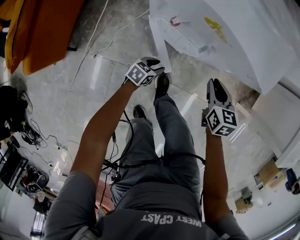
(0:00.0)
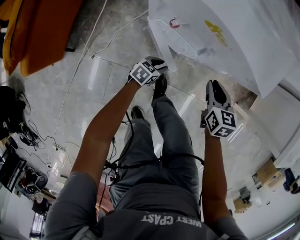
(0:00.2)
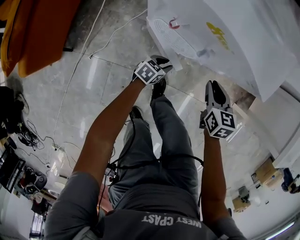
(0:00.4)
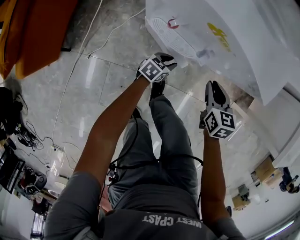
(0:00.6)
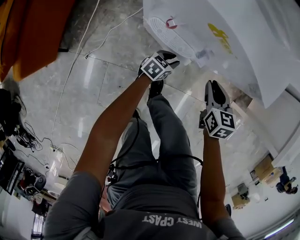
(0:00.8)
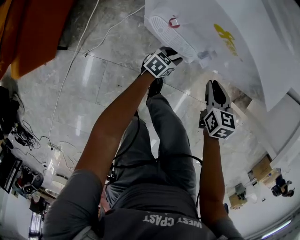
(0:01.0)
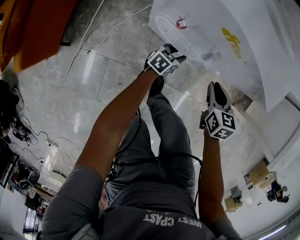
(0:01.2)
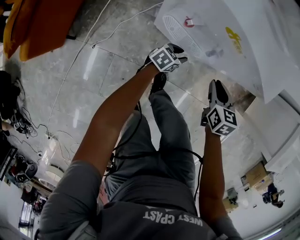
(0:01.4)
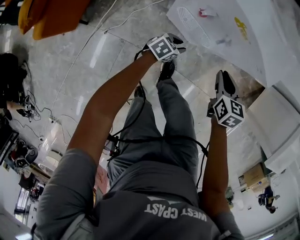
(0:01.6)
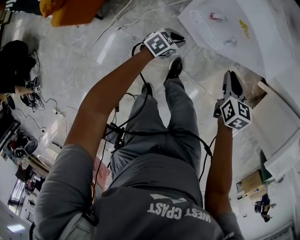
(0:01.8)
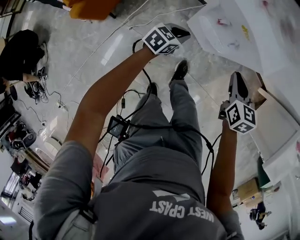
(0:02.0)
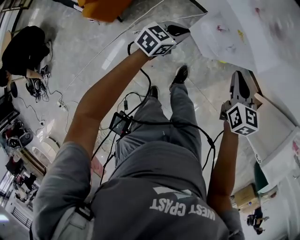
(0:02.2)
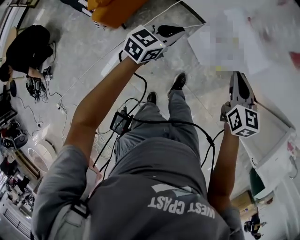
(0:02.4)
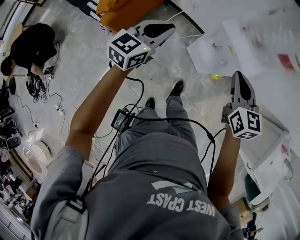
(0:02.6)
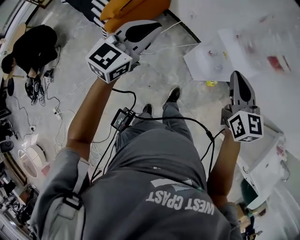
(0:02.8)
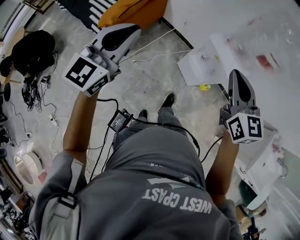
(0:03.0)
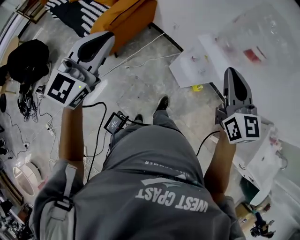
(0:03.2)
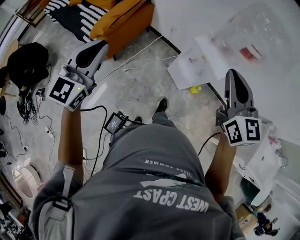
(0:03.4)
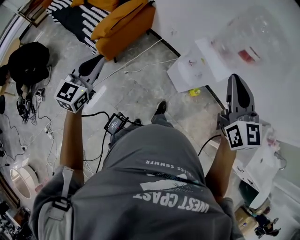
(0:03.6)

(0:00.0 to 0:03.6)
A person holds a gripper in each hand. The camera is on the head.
0:00.0 - 0:01.8: The right gripper moves upward, approximately 10 cm, while the left gripper shifts roughly 15 cm upward and to the left, and closes its fingers.
0:01.8 - 0:03.6: Both grippers move upward, approximately 50 cm. The left gripper swivels approximately 60 degrees. Meanwhile the right gripper points its fingers roughly 40 degrees further upward.

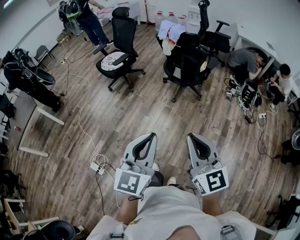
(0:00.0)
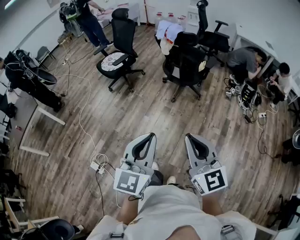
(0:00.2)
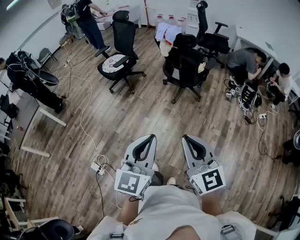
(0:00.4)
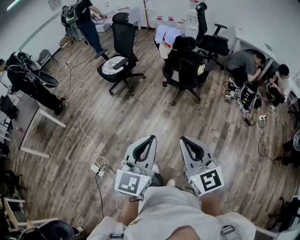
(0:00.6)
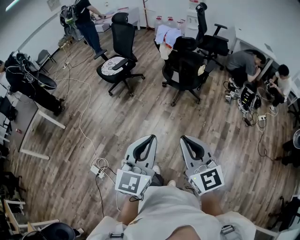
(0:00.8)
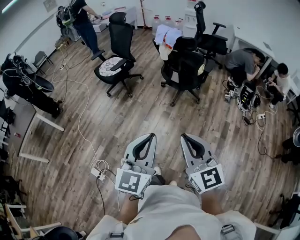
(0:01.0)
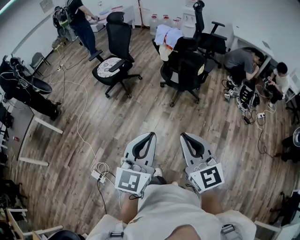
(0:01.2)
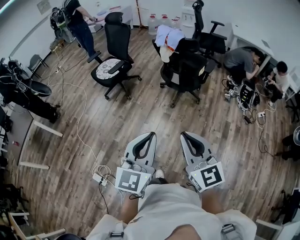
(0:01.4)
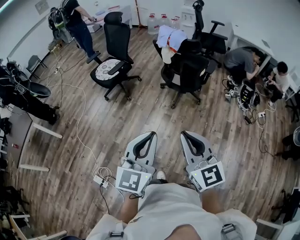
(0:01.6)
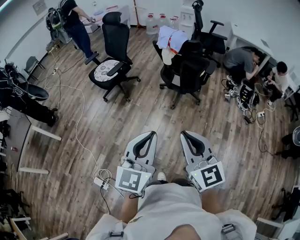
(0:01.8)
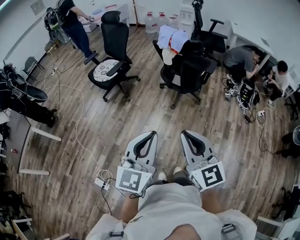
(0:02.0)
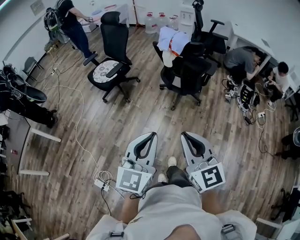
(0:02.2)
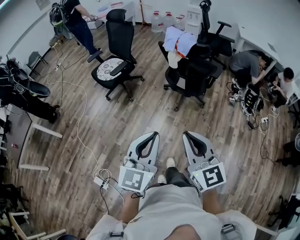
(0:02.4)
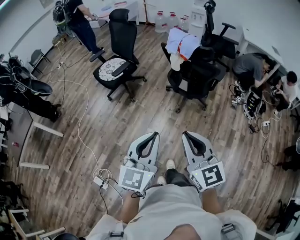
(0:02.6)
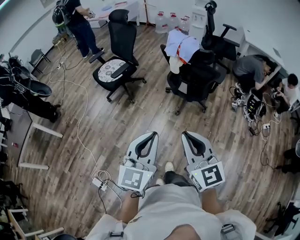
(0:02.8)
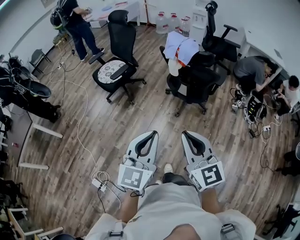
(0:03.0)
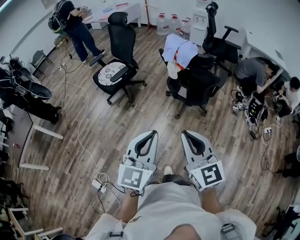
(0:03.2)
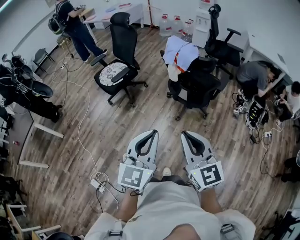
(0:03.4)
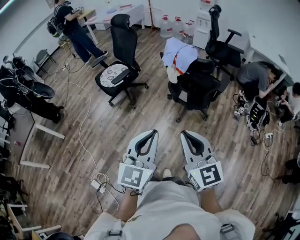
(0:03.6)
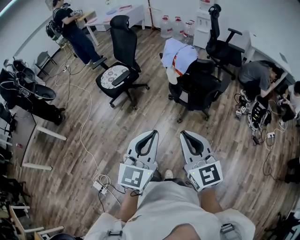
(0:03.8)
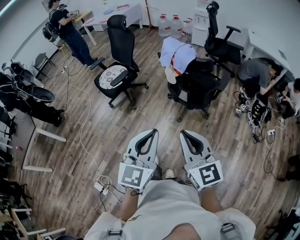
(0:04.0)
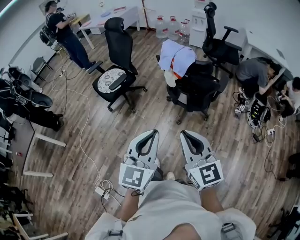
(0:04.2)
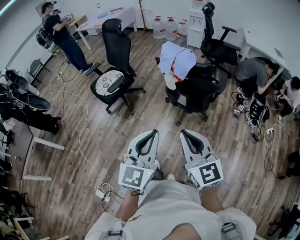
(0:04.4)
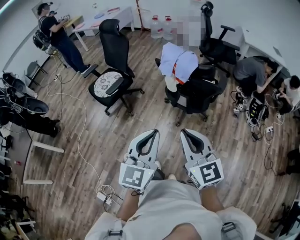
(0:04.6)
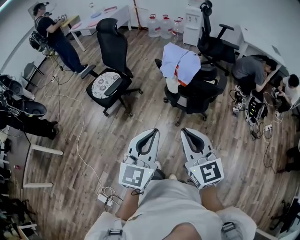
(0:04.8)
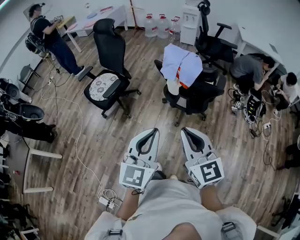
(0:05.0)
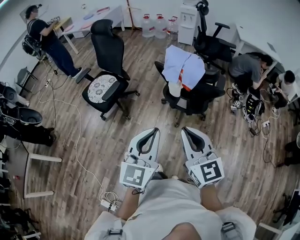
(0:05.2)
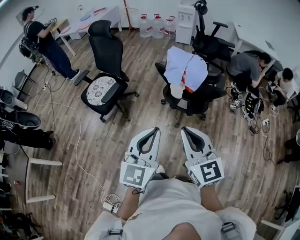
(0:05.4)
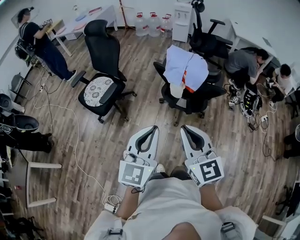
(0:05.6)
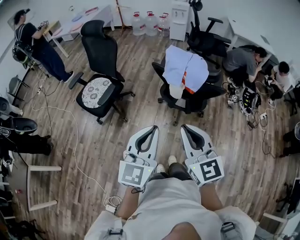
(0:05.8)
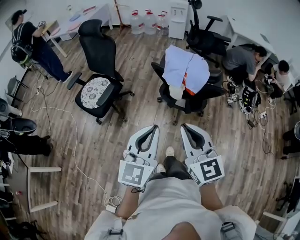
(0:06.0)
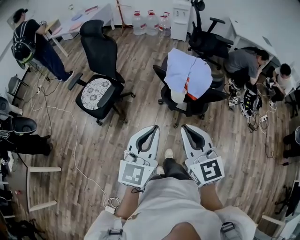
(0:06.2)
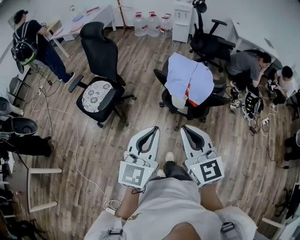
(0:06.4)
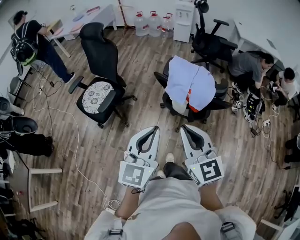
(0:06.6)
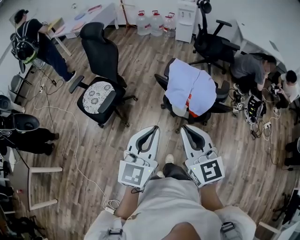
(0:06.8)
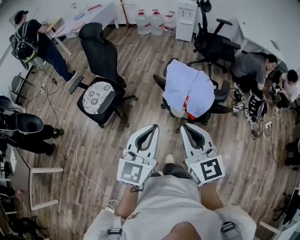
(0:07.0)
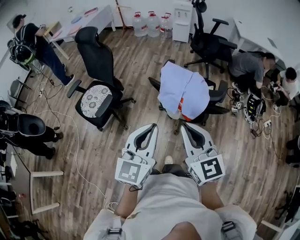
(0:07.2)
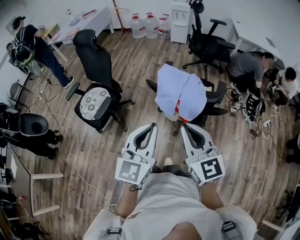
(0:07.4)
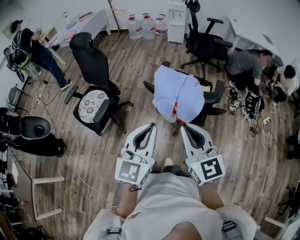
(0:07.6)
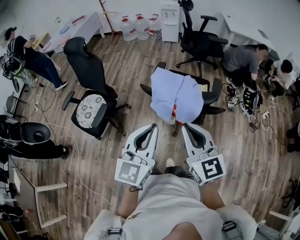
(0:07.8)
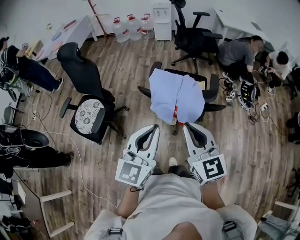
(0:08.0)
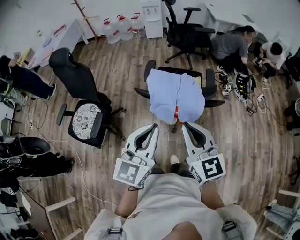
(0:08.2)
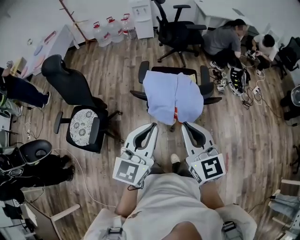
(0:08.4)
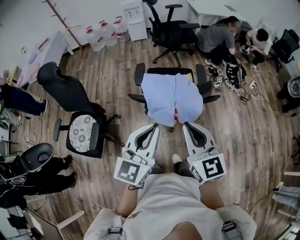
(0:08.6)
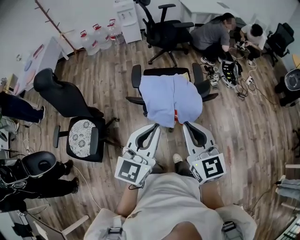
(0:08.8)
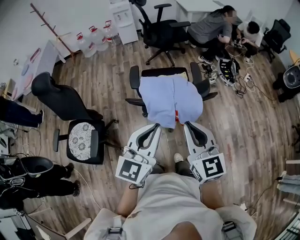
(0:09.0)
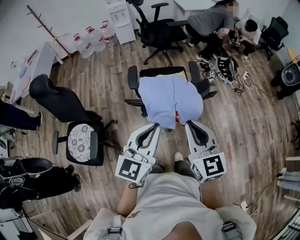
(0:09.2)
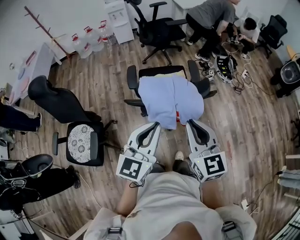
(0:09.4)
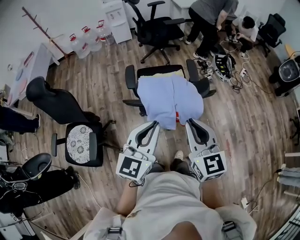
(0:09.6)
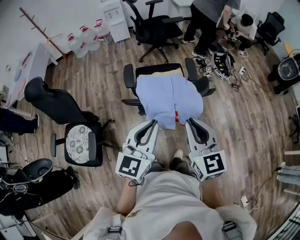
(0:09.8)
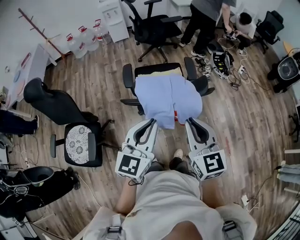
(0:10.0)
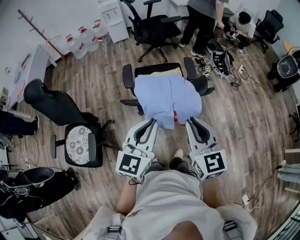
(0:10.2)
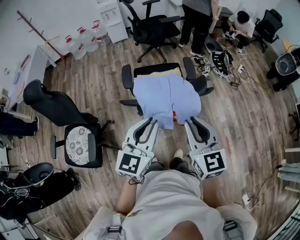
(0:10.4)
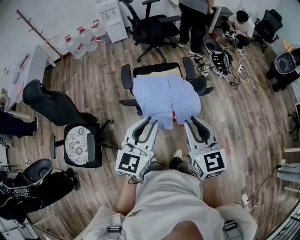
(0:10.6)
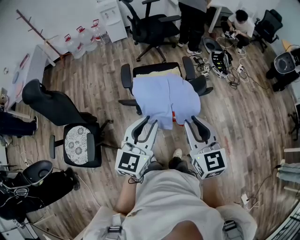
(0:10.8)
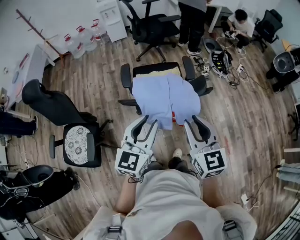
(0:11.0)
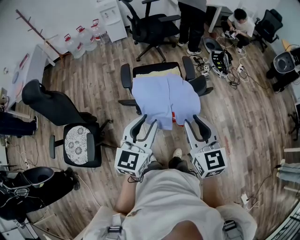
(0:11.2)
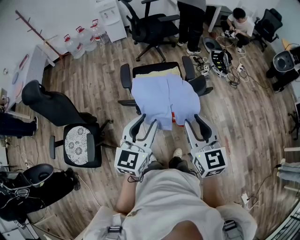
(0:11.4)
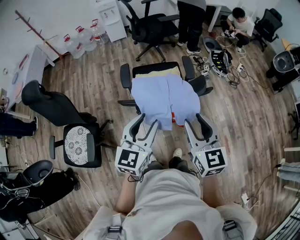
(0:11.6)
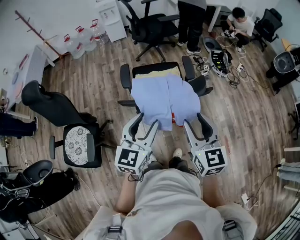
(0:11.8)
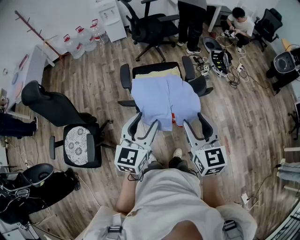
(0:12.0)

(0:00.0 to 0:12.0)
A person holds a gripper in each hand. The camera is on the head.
0:00.0 - 0:01.6: The left gripper heads forward, covering about 10 cm. Meanwhile the right gripper goes about 10 cm forward and to the left.
0:01.6 - 0:03.0: Both grippers travel together forward, about 15 cm.
0:03.0 - 0:04.4: The two grippers go about 10 cm forward.
0:04.4 - 0:06.0: Both grippers move forward and to the left, some 15 cm.
0:06.0 - 0:07.6: The right gripper travels forward and to the right by roughly 15 cm. Meanwhile the left gripper heads forward, covering about 15 cm.
0:07.6 - 0:09.0: The left gripper ends up roughly 10 cm from where it was, and swivels about 30 degrees; the right gripper changes its angle by about 30 degrees.
0:09.0 - 0:10.4: The grippers move only a little.
0:10.4 - 0:12.0: The right gripper opens its fingers, while the left gripper opens up.

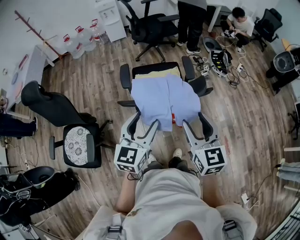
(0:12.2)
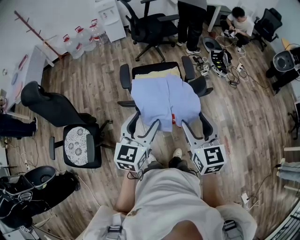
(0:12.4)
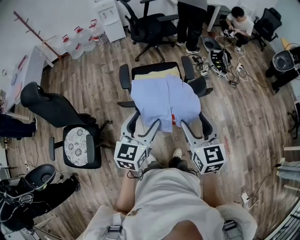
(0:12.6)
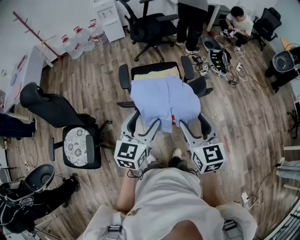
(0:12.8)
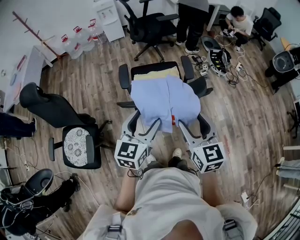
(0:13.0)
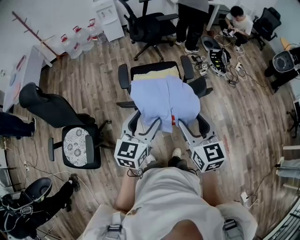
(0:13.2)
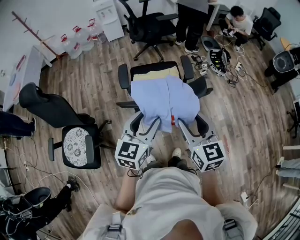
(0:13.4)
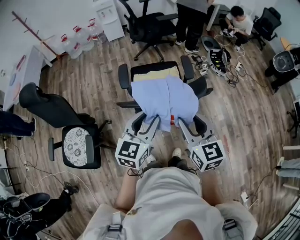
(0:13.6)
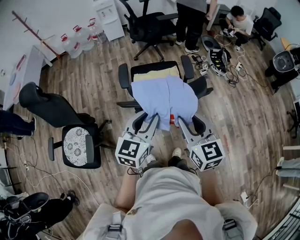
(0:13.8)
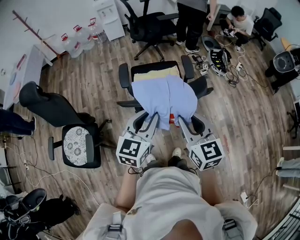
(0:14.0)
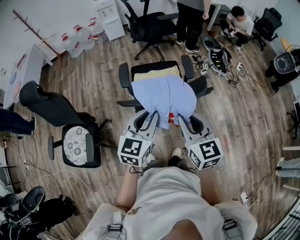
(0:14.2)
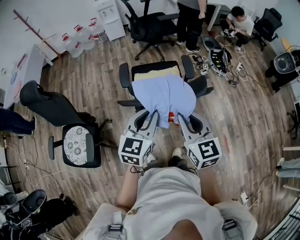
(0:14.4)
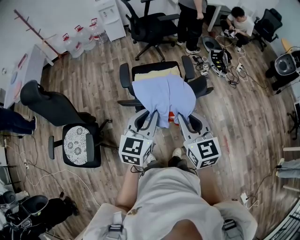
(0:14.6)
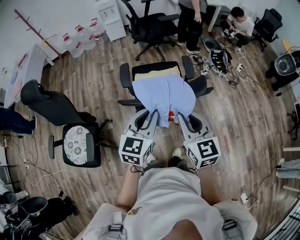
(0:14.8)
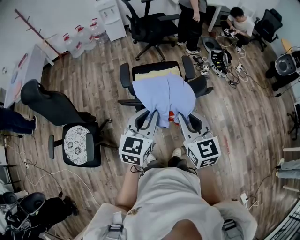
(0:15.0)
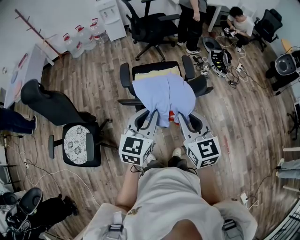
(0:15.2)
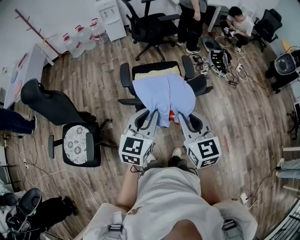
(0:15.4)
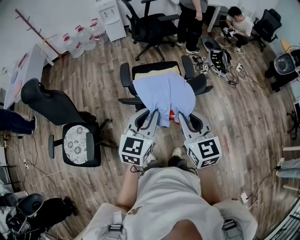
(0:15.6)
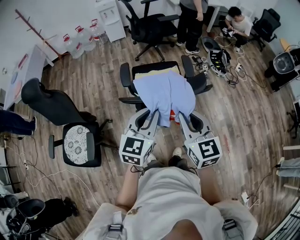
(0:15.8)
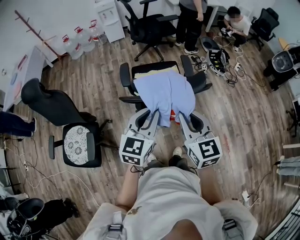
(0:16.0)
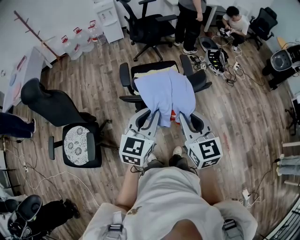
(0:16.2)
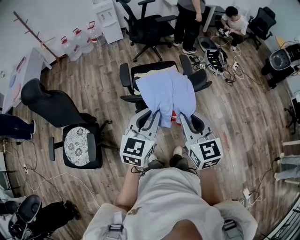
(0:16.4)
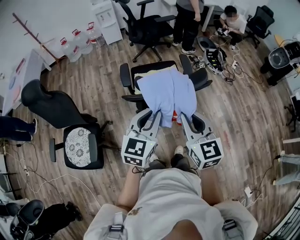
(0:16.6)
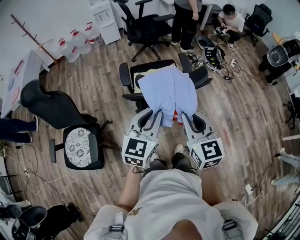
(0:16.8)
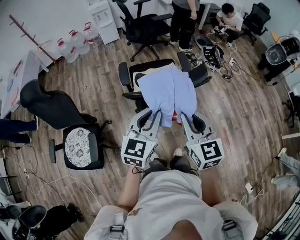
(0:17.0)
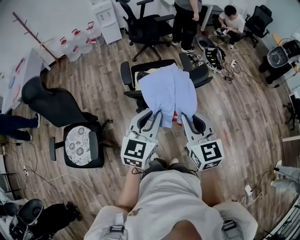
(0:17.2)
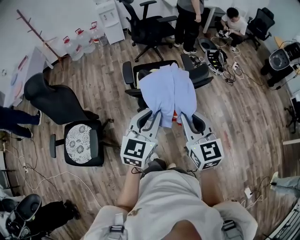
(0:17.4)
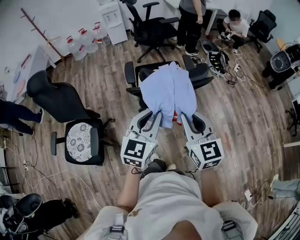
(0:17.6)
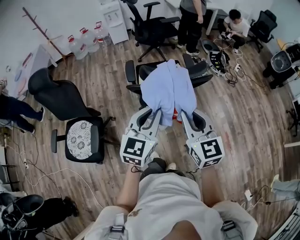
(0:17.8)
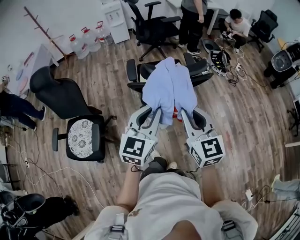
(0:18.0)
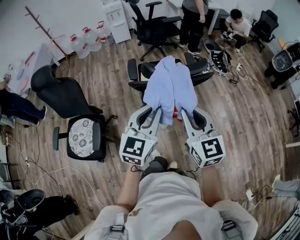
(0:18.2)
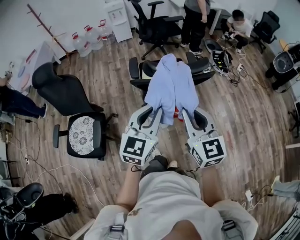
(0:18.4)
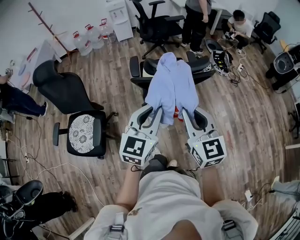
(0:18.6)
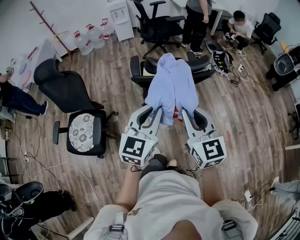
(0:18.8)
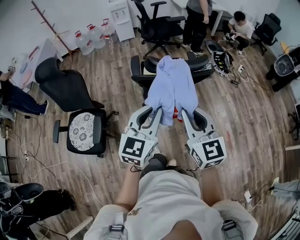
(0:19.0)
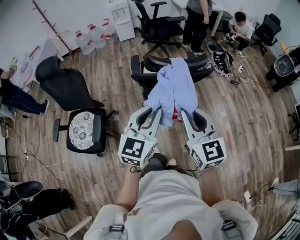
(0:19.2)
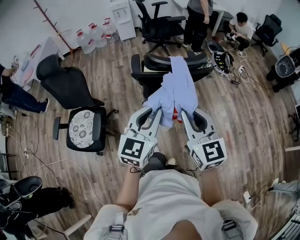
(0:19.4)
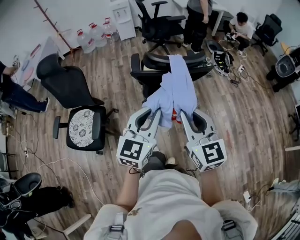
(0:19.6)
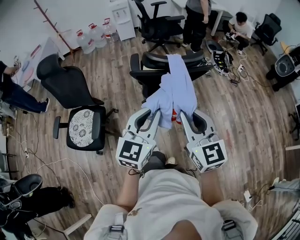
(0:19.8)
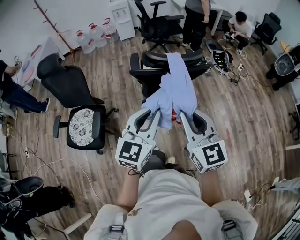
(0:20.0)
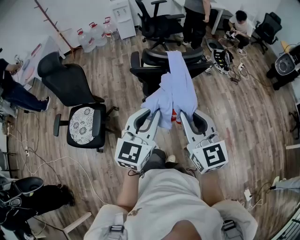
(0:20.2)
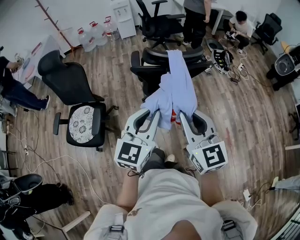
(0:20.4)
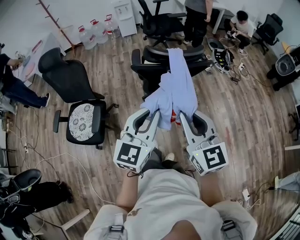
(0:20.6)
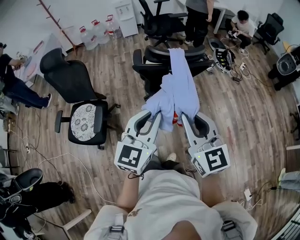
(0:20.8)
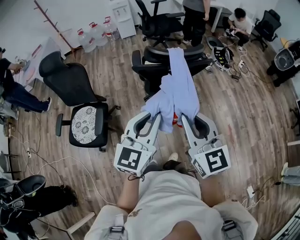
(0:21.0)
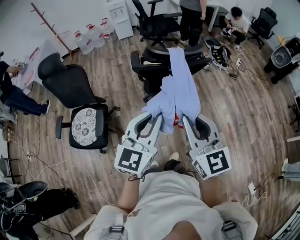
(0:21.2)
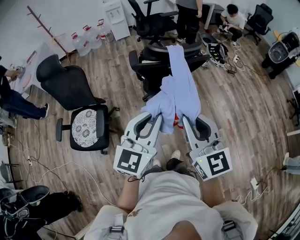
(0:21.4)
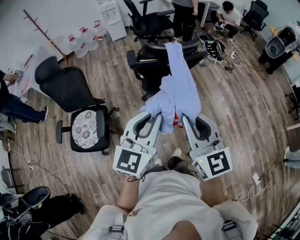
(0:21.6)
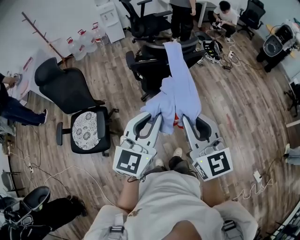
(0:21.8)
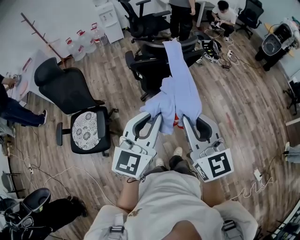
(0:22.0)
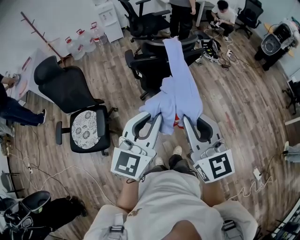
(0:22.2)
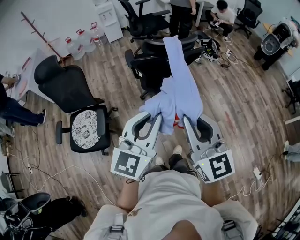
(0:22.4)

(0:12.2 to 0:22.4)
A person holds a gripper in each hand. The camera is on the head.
0:12.2 - 0:13.6: The grippers make only small movements.
0:13.6 - 0:15.2: The right gripper closes.
0:15.2 - 0:16.6: The right gripper changes place by approximately 5 cm.
0:16.6 - 0:18.0: Both grippers travel together backward, about 5 cm.
0:18.0 - 0:19.4: Both grippers travel together backward, some 5 cm.
0:19.4 - 0:21.0: The two grippers go roughly 5 cm backward.
0:21.0 - 0:22.4: The grippers both shift backward by approximately 10 cm.
